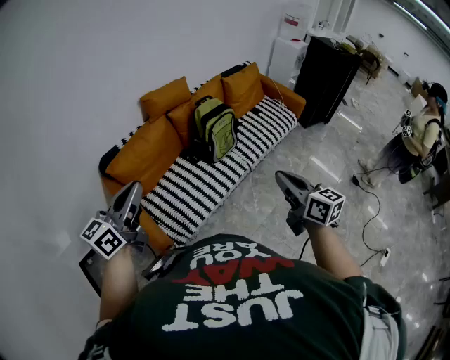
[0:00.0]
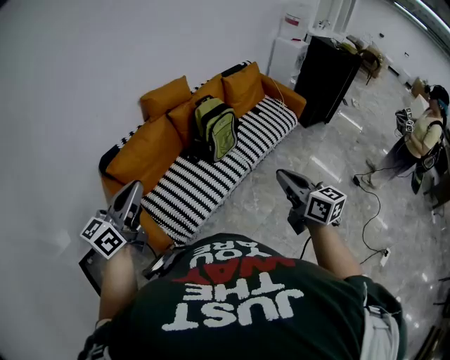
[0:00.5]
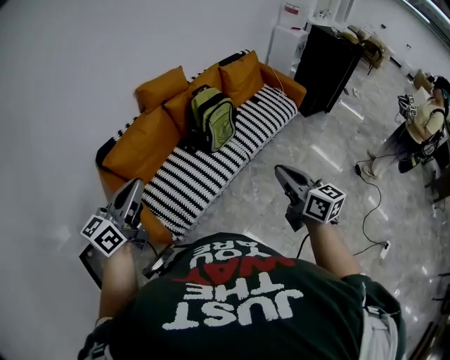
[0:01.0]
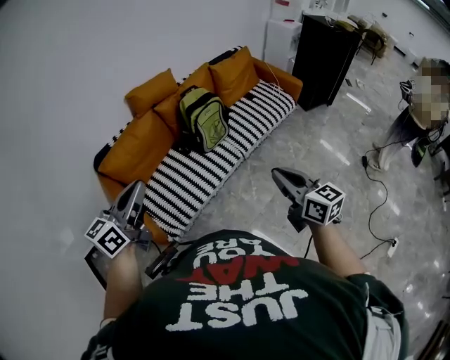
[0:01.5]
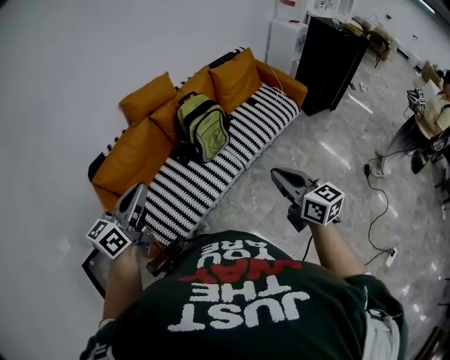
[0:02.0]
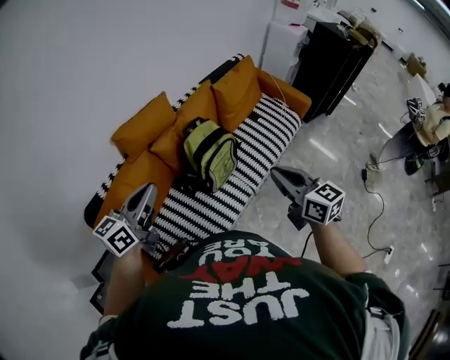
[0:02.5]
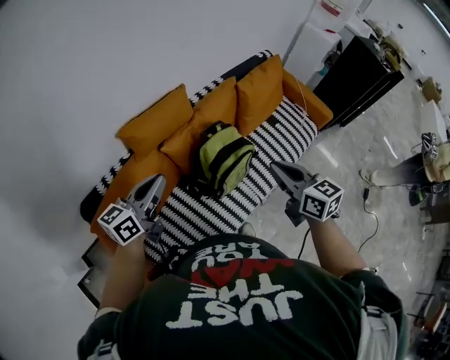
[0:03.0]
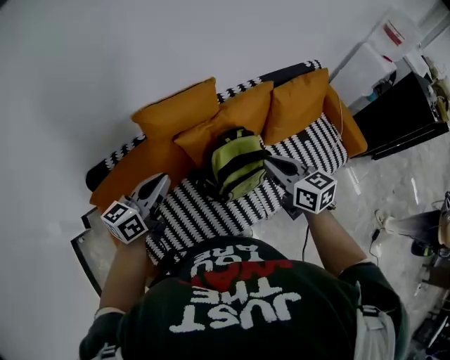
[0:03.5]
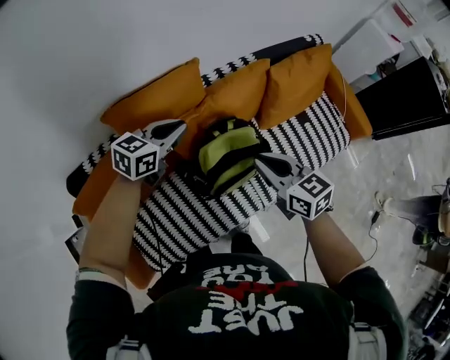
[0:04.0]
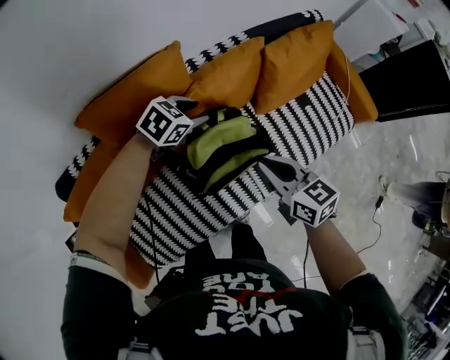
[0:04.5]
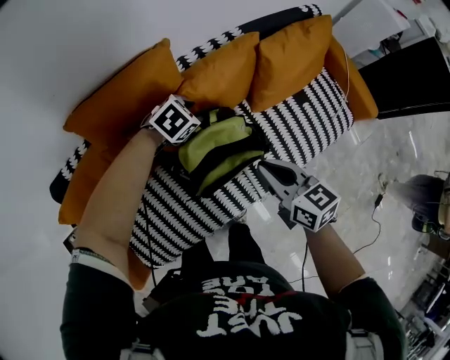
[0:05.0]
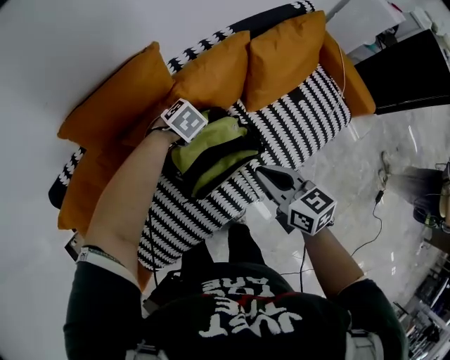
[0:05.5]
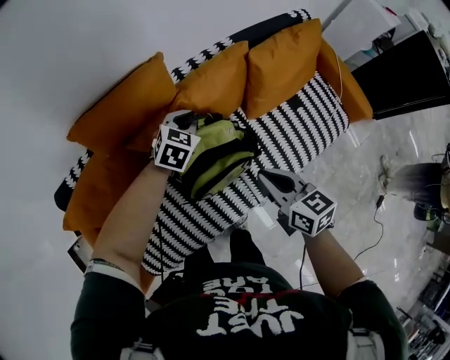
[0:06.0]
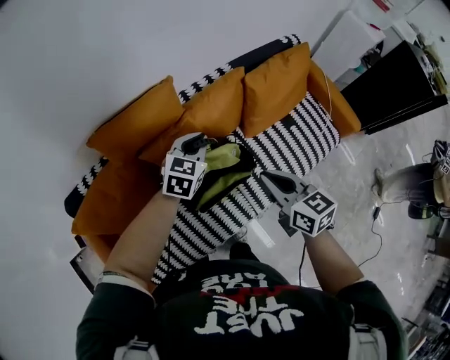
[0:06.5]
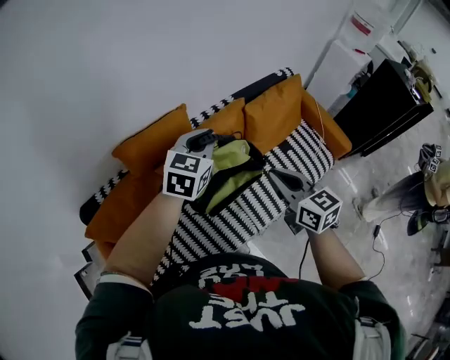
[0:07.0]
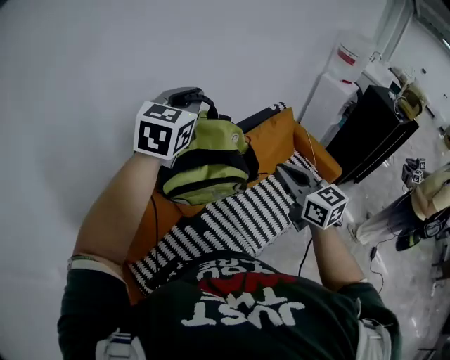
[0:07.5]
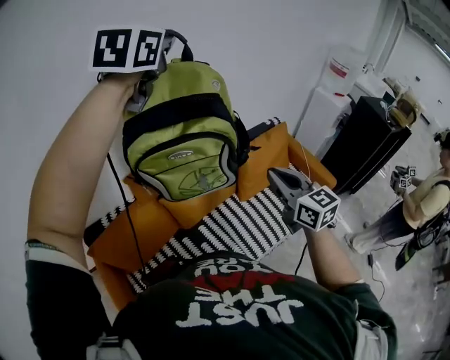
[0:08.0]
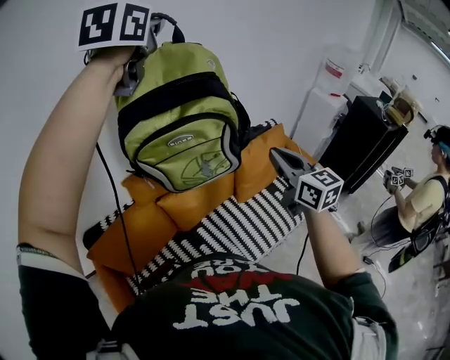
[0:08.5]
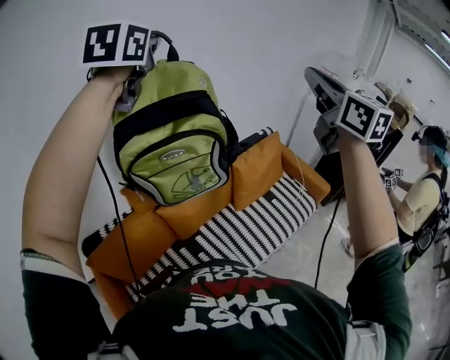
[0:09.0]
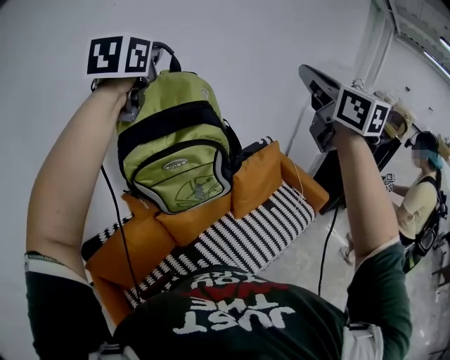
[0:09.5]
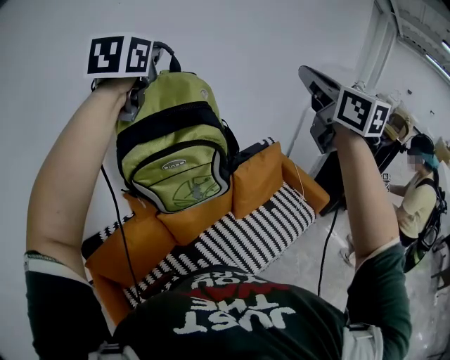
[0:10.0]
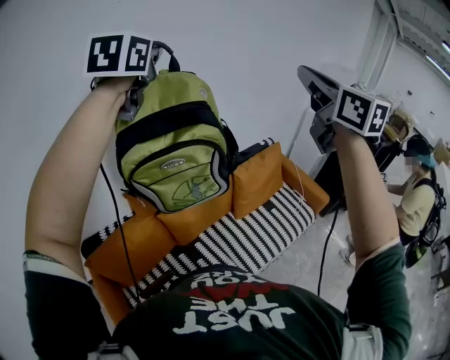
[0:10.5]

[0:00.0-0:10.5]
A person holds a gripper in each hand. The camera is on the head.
0:00.0 to 0:02.0: The grippers both shift to the right and forward by roughly 15 cm.
0:02.0 to 0:04.0: Both grippers are carried forward, approximately 50 cm. The right gripper changes its angle by approximately 30 degrees, while the left gripper changes its angle by some 30 degrees.
0:04.0 to 0:06.5: Both grippers travel together to the right, roughly 10 cm. The left gripper moves about 20 cm downward and comes back, rotates about 20 degrees, and opens, then closes again. Meanwhile the right gripper travels downward and back again, roughly 10 cm each way.
0:06.5 to 0:08.5: The left gripper moves upward, approximately 70 cm, and turns by approximately 30 degrees. The right gripper shifts roughly 30 cm upward, and turns by approximately 30 degrees.
0:08.5 to 0:10.5: The right gripper goes about 25 cm upward.

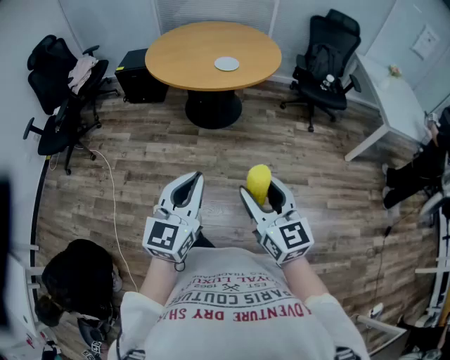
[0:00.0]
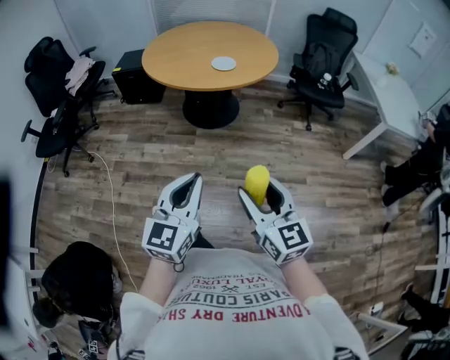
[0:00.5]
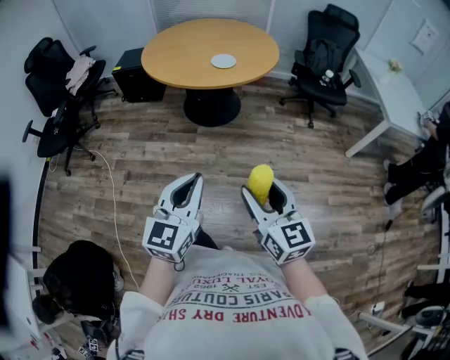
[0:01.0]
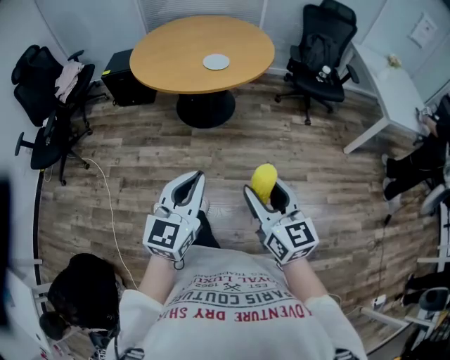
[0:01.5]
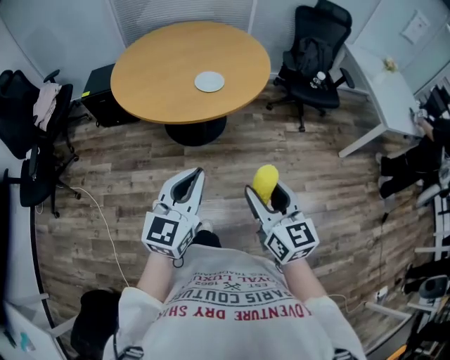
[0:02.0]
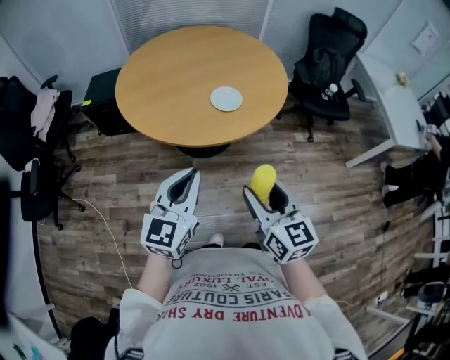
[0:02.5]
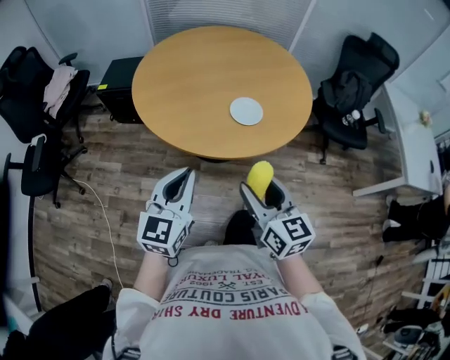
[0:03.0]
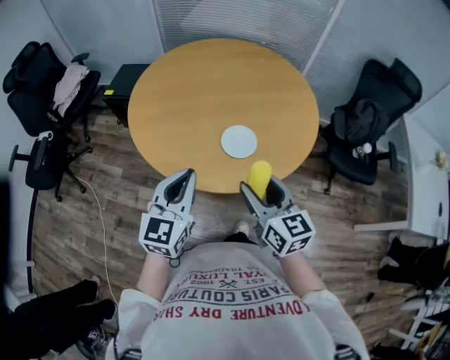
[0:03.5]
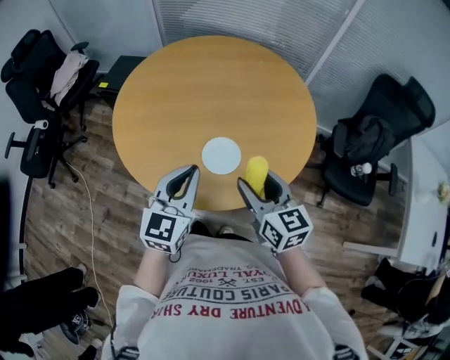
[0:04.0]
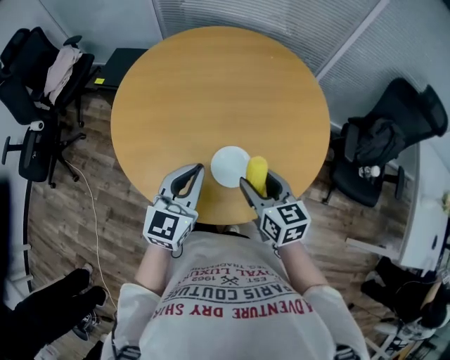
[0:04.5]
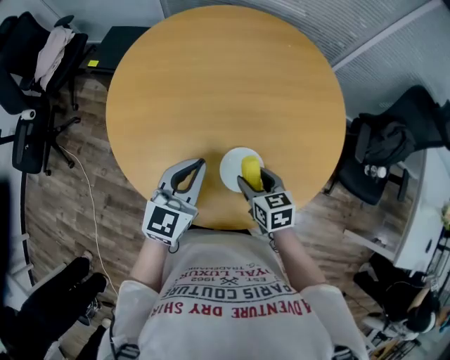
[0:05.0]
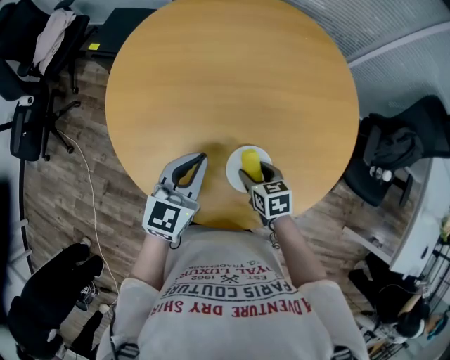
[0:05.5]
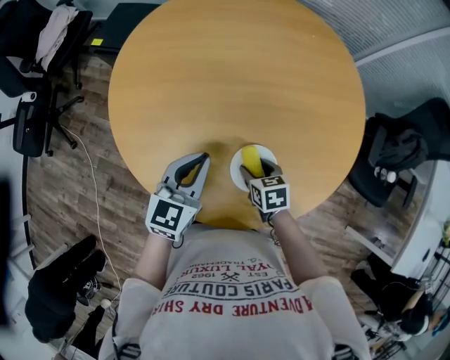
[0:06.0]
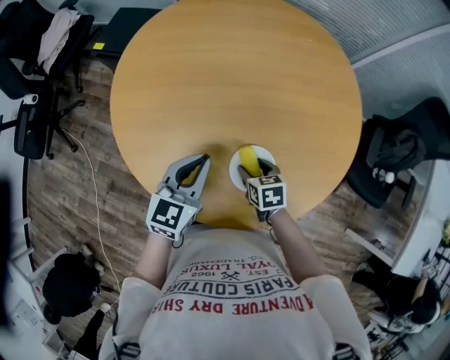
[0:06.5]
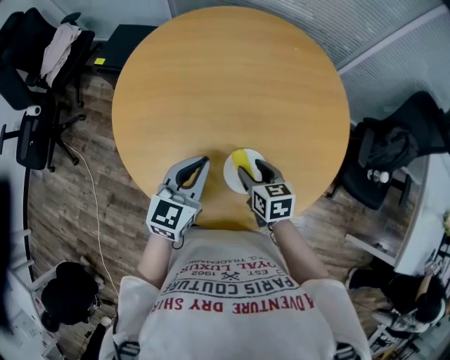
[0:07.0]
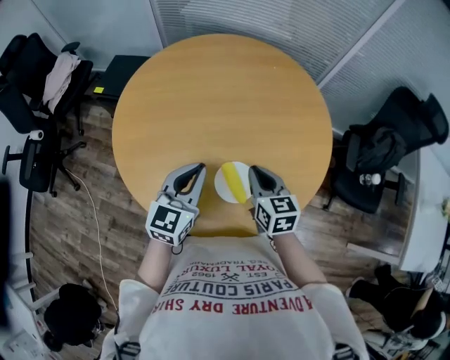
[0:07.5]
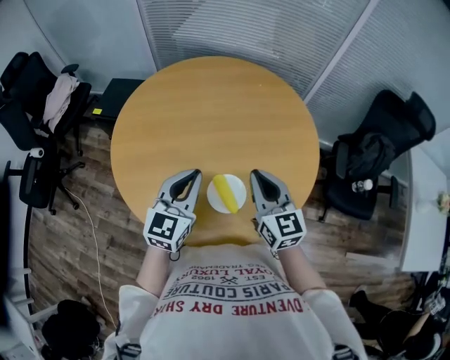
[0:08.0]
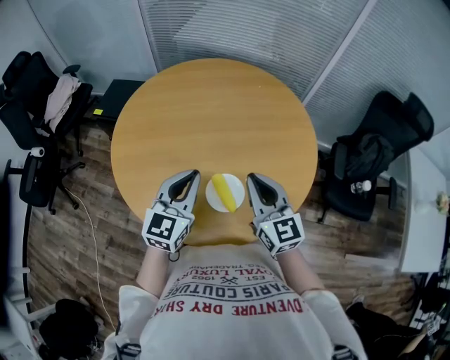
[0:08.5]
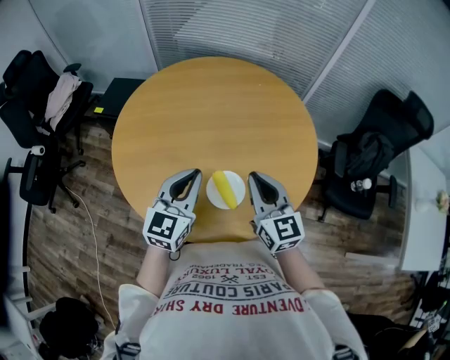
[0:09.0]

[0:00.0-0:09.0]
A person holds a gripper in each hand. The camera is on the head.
0:00.0 to 0:02.0: Both grippers travel together forward, some 25 cm.
0:02.0 to 0:04.5: The pair of grippers is taken some 50 cm. The left gripper turns by about 20 degrees. The right gripper turns by some 30 degrees.
0:04.5 to 0:07.0: The left gripper is displaced forward and downward by about 10 cm, while the right gripper shifts approximately 15 cm downward and forward.
0:07.0 to 0:09.0: The left gripper shifts approximately 10 cm upward. Meanwhile the right gripper goes approximately 20 cm upward, points its fingers approximately 40 degrees further upward, and closes up.

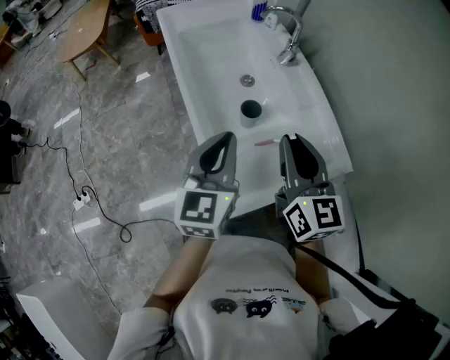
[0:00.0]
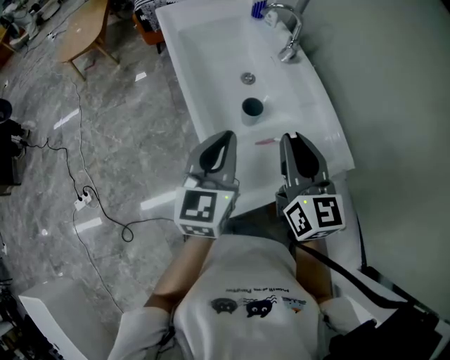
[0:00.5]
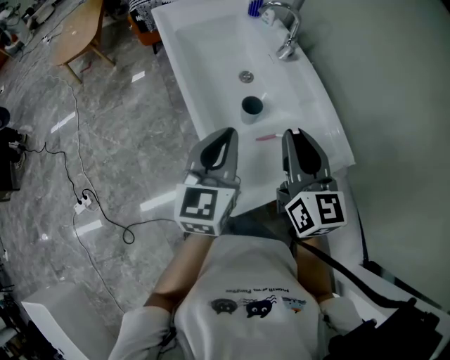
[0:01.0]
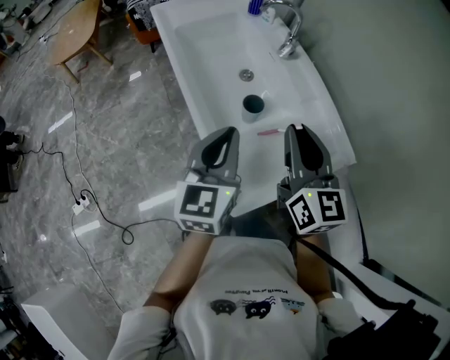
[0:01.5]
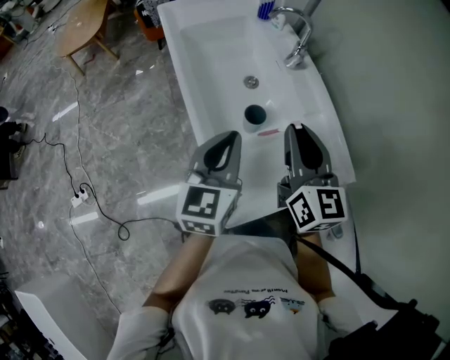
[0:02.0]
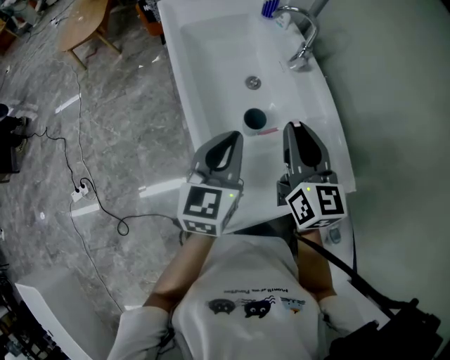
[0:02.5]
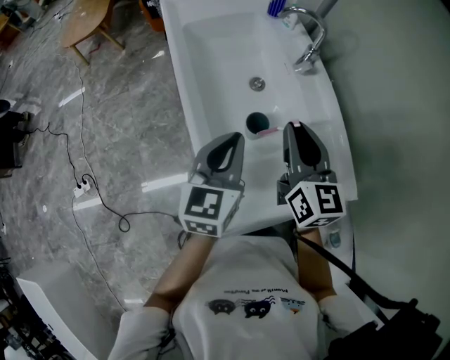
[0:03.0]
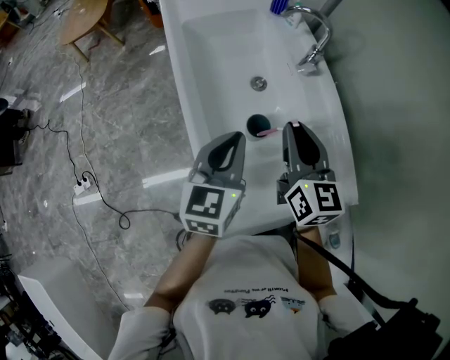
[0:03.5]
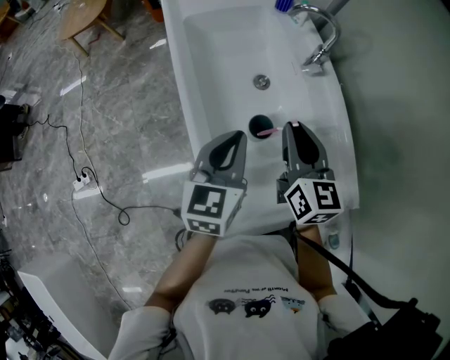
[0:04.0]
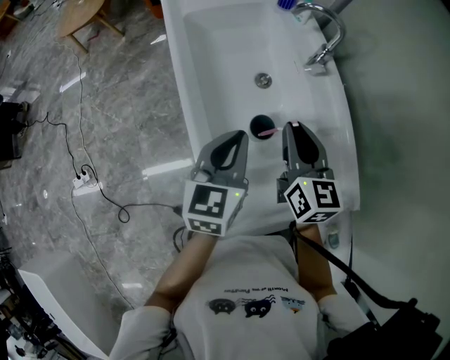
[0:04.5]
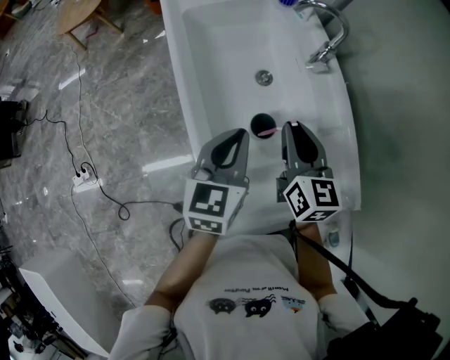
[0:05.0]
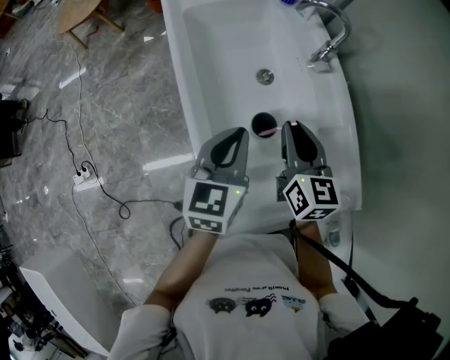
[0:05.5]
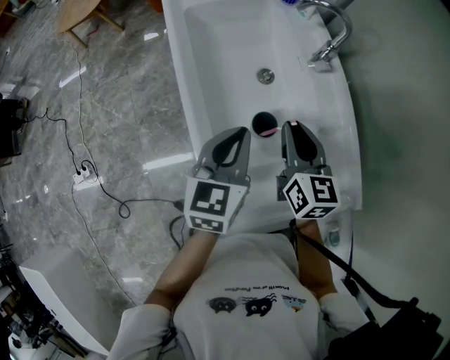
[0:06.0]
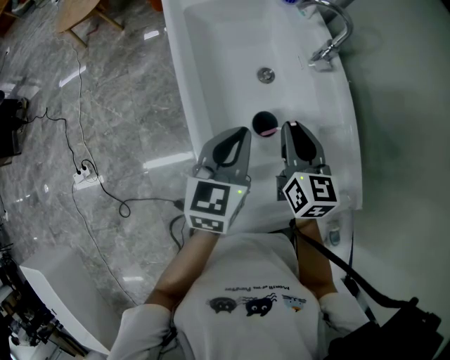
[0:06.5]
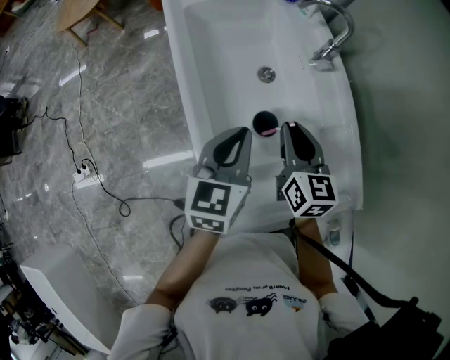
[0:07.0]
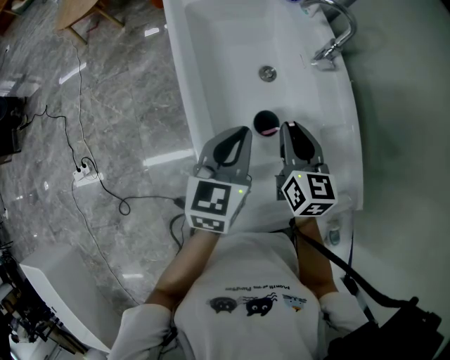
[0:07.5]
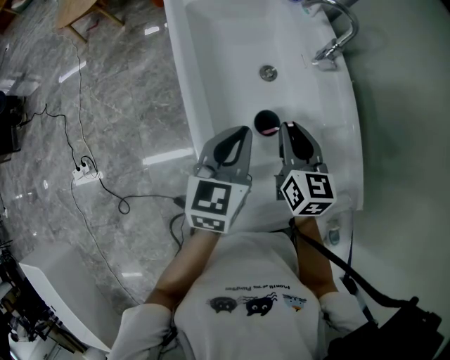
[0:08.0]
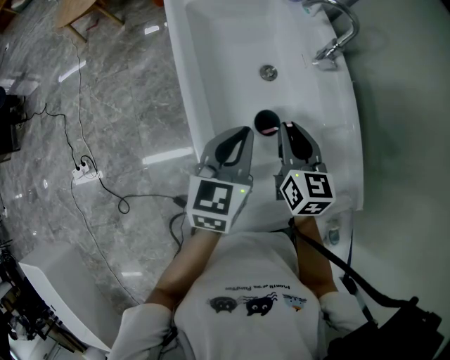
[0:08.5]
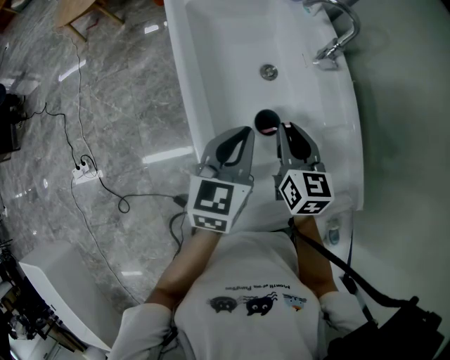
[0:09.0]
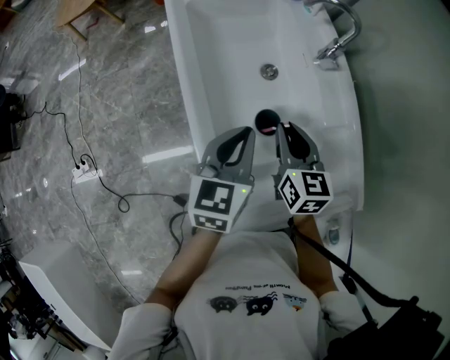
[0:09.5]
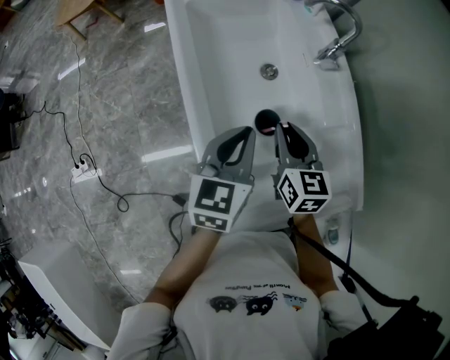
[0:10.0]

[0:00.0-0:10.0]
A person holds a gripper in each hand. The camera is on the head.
0:00.0 to 0:02.0: The right gripper moves forward, some 5 cm.
0:02.0 to 0:04.0: The right gripper goes roughly 10 cm forward and downward. The left gripper shifts some 10 cm forward.
0:04.0 to 0:06.0: The grippers move only a little.
0:06.0 to 0:10.0: The grippers stay close to where they were, moving slightly.
